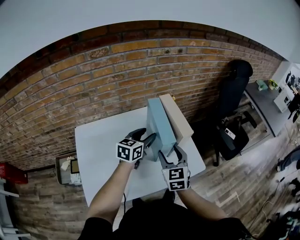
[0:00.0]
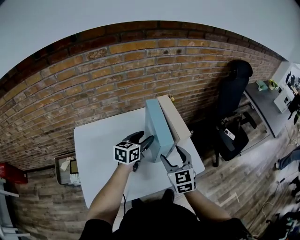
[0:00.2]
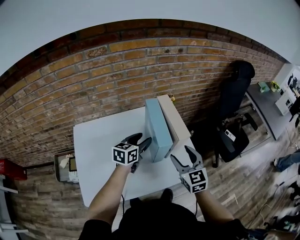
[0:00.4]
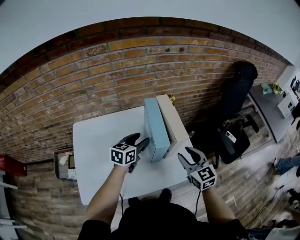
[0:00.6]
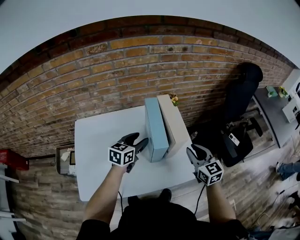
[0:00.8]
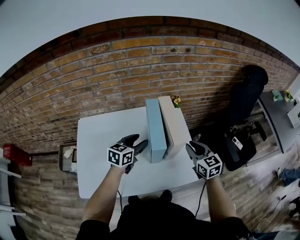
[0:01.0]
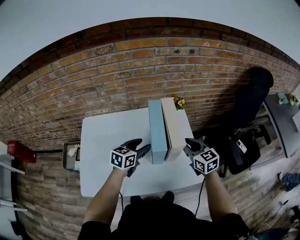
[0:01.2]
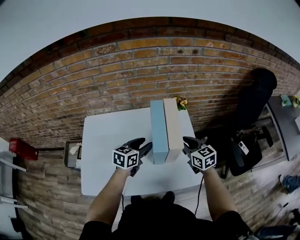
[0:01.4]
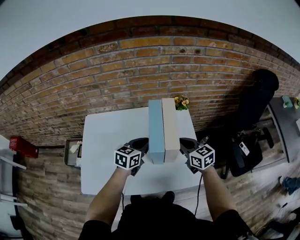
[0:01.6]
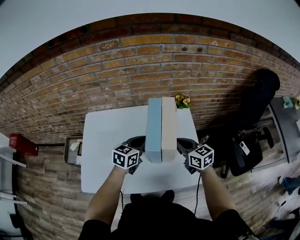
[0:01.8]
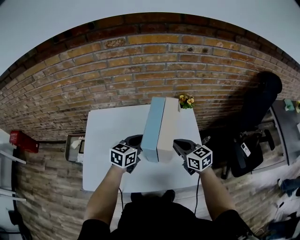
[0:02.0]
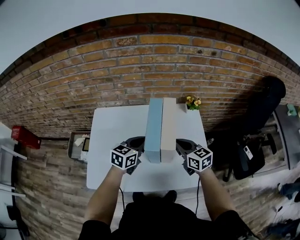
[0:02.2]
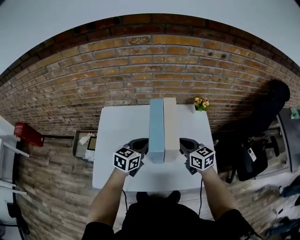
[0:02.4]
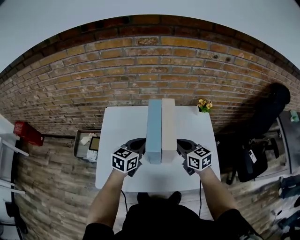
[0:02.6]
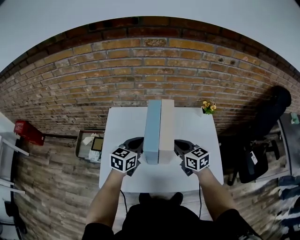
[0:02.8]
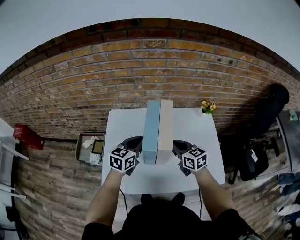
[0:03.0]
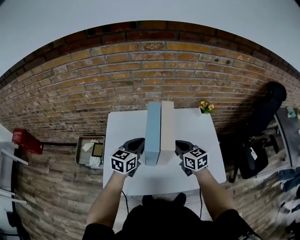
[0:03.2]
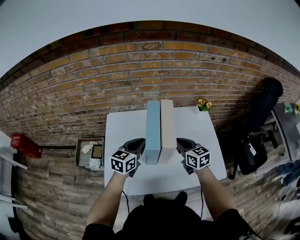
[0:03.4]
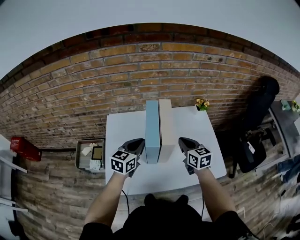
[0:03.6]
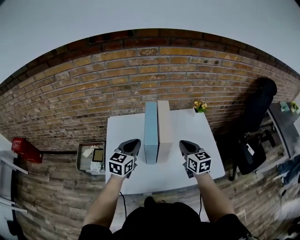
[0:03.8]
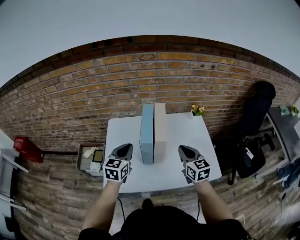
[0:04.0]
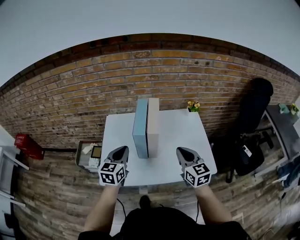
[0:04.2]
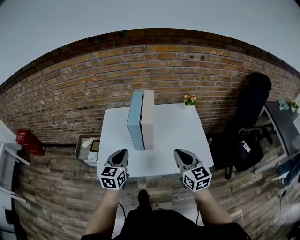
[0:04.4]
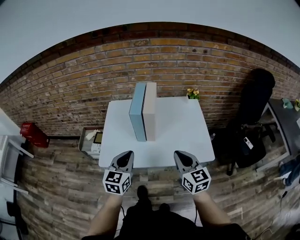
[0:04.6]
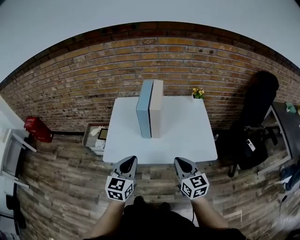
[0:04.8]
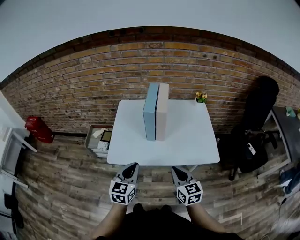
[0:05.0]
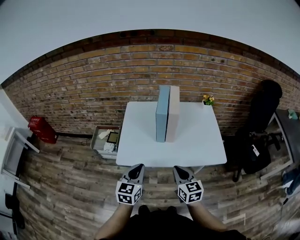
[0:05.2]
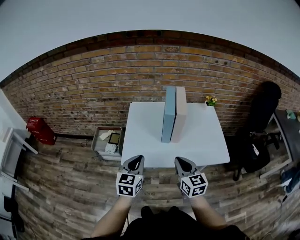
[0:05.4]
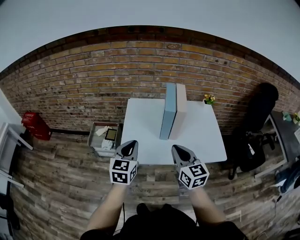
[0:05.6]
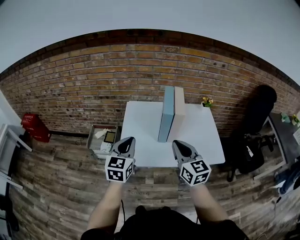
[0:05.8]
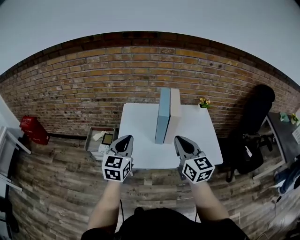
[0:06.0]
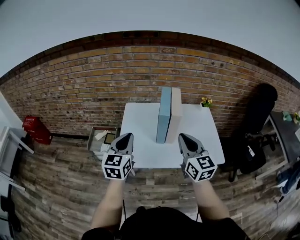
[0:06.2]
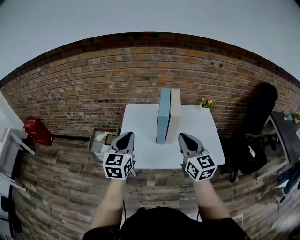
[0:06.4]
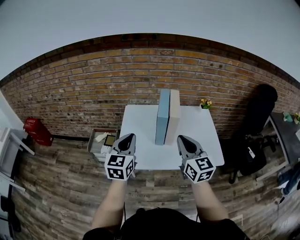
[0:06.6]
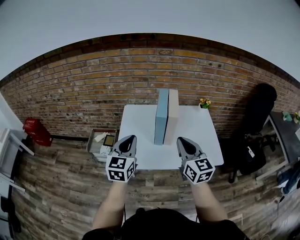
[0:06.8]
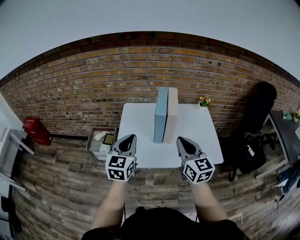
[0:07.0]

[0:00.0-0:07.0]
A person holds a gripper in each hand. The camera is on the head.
0:00.0 to 0:01.4: The right gripper goes approximately 15 cm forward and to the right, and rotates about 30 degrees.
0:01.4 to 0:02.8: The two grippers go some 20 cm to the left. The left gripper closes its fingers.
0:02.8 to 0:04.2: The right gripper is displaced backward, upward and to the right by about 15 cm, and turns by roughly 20 degrees, while the left gripper shifts approximately 10 cm backward and to the left.
0:04.2 to 0:05.6: The left gripper moves backward and to the left, about 15 cm, while the right gripper shifts some 20 cm to the left and backward.
0:05.6 to 0:07.0: The right gripper moves to the right and upward, approximately 10 cm. The left gripper ends up about 5 cm from where it was.

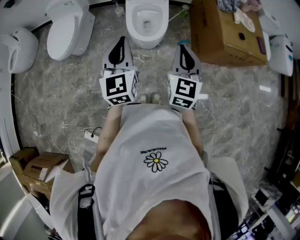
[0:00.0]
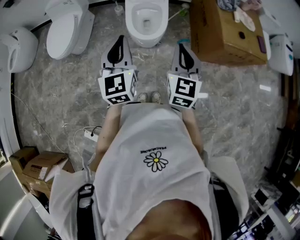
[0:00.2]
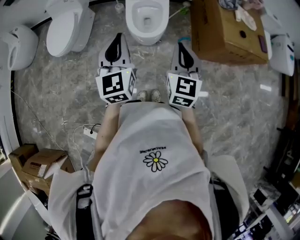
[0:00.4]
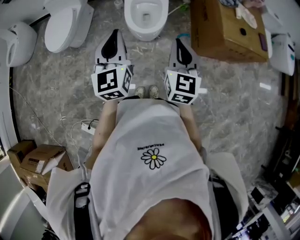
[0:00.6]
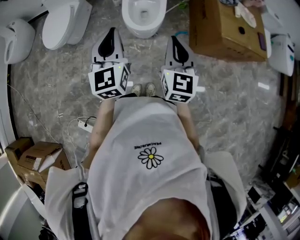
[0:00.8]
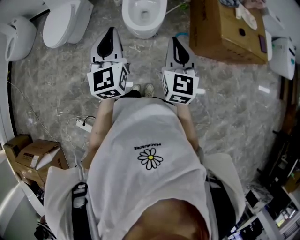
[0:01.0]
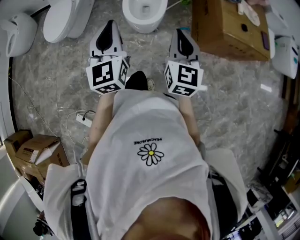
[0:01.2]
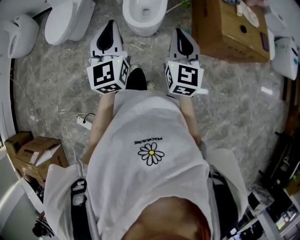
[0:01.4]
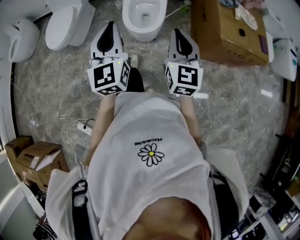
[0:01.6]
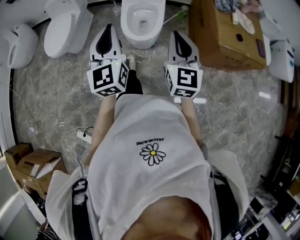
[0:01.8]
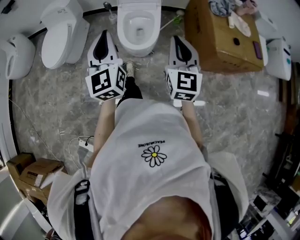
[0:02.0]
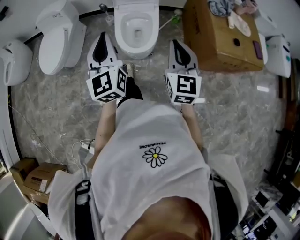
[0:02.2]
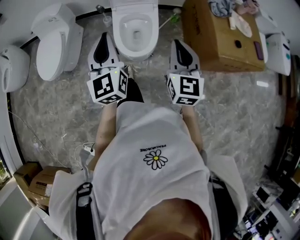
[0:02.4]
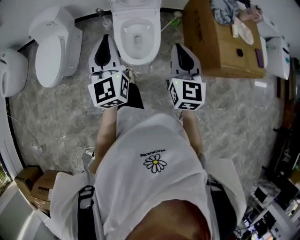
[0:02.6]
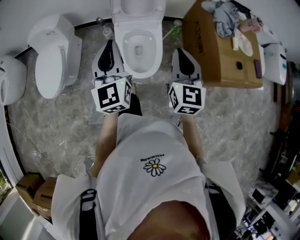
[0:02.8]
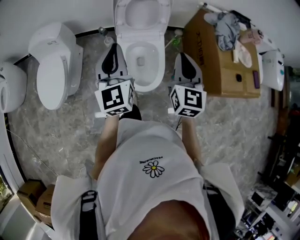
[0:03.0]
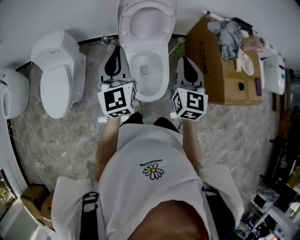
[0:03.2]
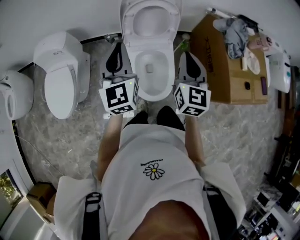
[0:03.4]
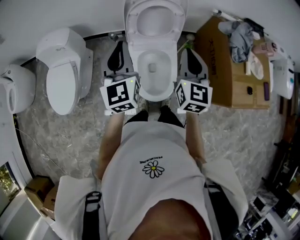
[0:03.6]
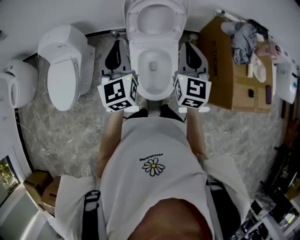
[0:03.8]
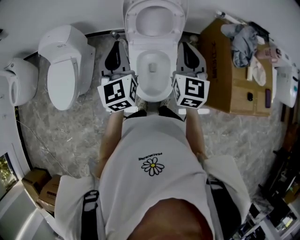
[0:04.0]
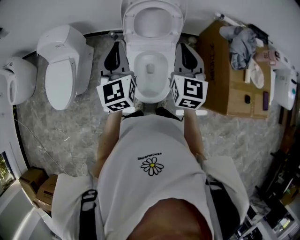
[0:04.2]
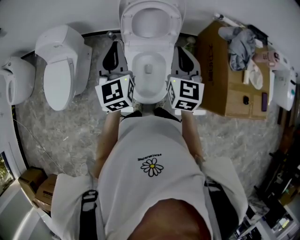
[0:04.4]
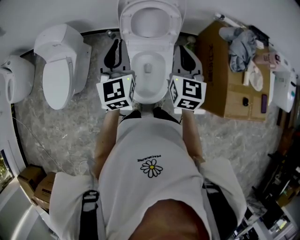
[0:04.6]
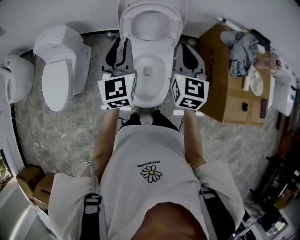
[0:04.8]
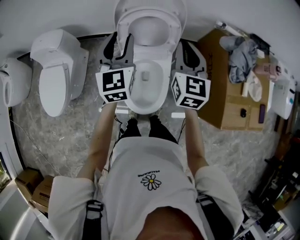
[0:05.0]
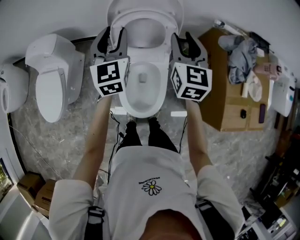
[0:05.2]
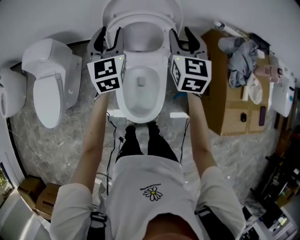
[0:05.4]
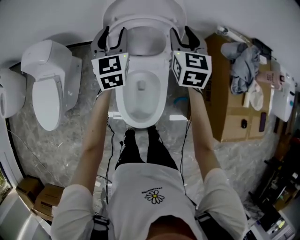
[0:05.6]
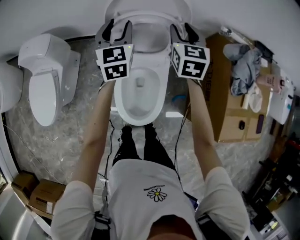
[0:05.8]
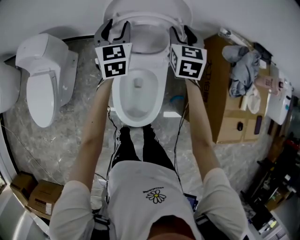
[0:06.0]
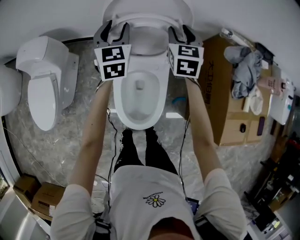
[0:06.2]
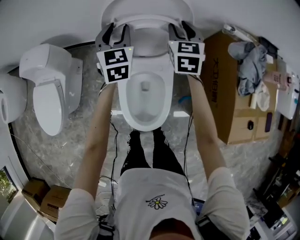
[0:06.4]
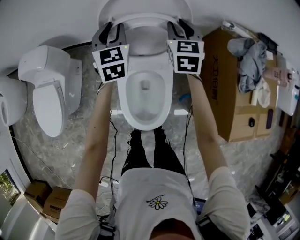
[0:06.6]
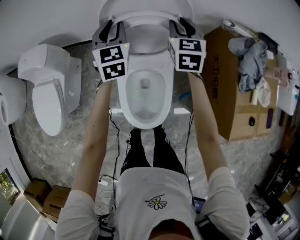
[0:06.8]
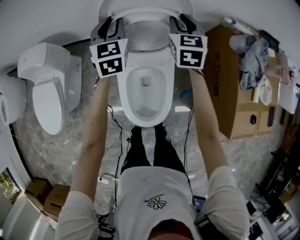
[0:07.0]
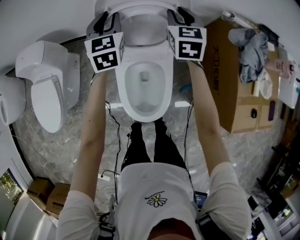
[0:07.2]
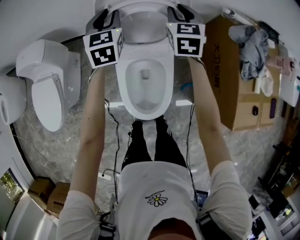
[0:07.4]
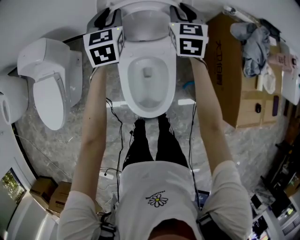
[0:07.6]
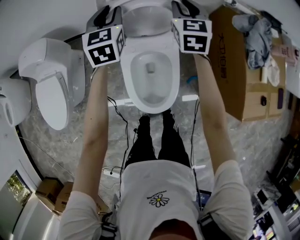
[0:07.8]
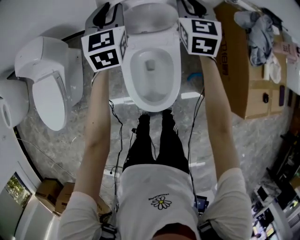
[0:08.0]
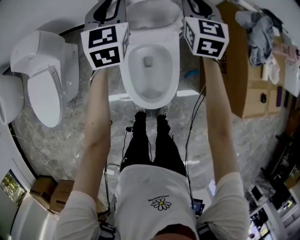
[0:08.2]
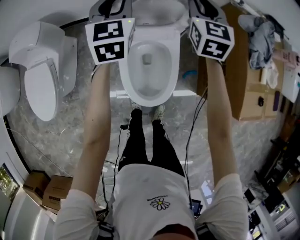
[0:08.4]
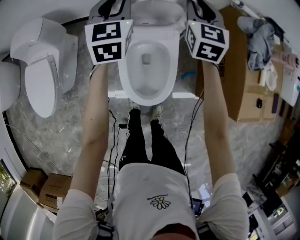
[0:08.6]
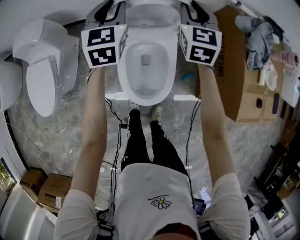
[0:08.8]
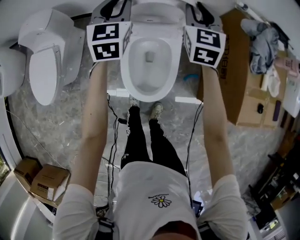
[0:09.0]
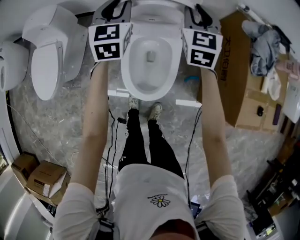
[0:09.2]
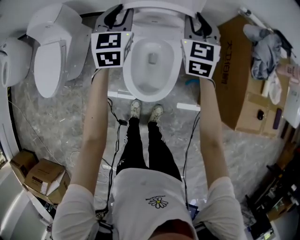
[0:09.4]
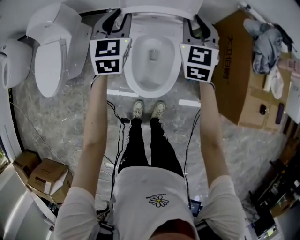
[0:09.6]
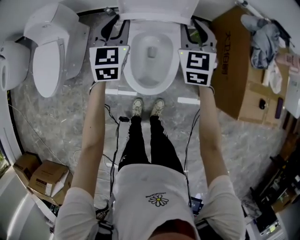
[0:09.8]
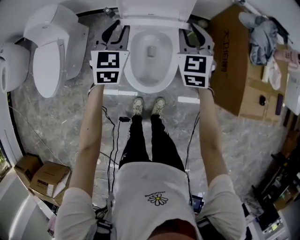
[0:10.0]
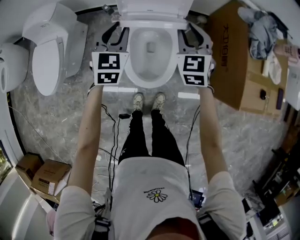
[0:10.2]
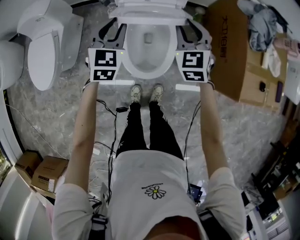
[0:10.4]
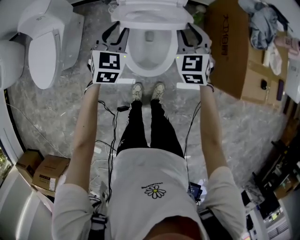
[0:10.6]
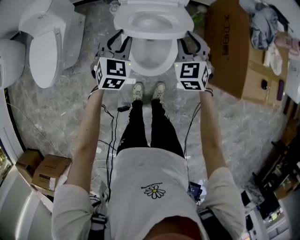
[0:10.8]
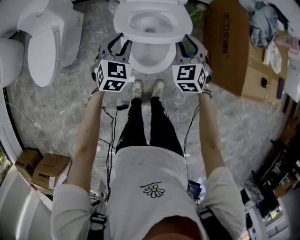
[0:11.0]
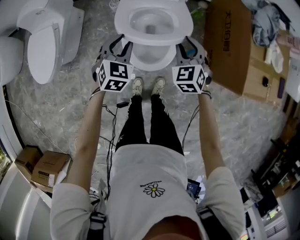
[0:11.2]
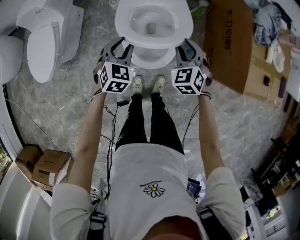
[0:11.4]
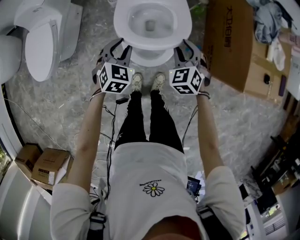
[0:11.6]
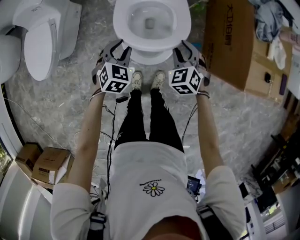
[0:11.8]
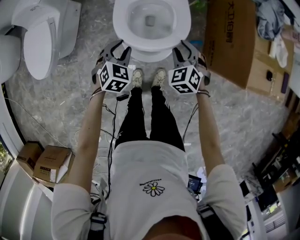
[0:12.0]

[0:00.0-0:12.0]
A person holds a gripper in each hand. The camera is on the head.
0:00.0 to 0:01.6: The grippers stay close to where they were, moving slightly.
0:01.6 to 0:03.0: The two grippers go about 35 cm forward.
0:03.0 to 0:04.4: The two grippers go some 15 cm forward.
0:04.4 to 0:06.0: The grippers both shift forward and downward by roughly 30 cm. The right gripper opens, while the left gripper opens its fingers.
0:06.0 to 0:07.6: The grippers make only small movements.
0:07.6 to 0:09.0: The grippers both shift backward by some 10 cm.
0:09.0 to 0:10.4: Both grippers move backward, about 15 cm.
0:10.4 to 0:12.0: The right gripper travels backward and downward by approximately 20 cm, and rotates roughly 30 degrees, while the left gripper is displaced downward and backward by about 20 cm, and turns by approximately 30 degrees.

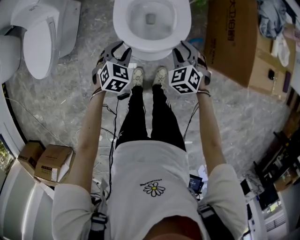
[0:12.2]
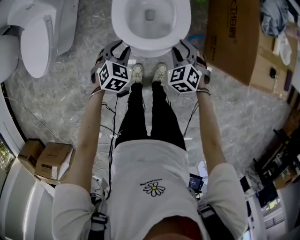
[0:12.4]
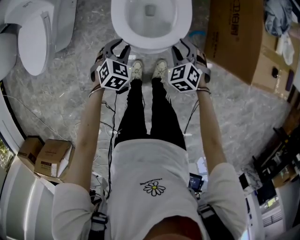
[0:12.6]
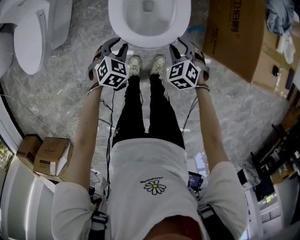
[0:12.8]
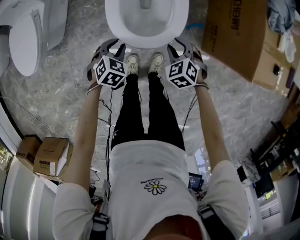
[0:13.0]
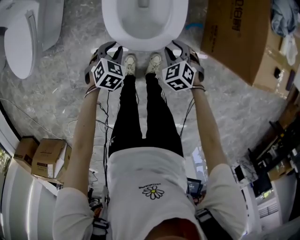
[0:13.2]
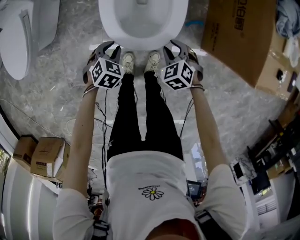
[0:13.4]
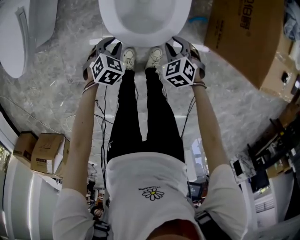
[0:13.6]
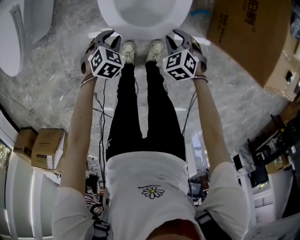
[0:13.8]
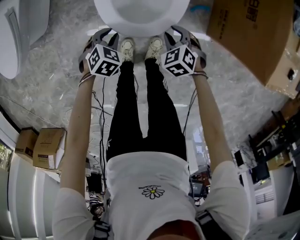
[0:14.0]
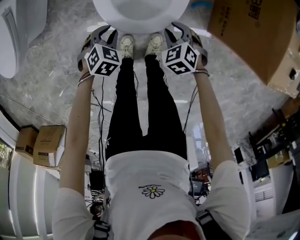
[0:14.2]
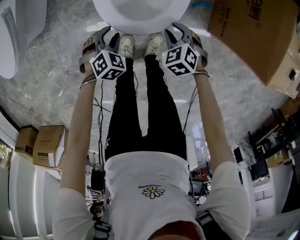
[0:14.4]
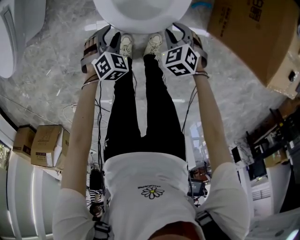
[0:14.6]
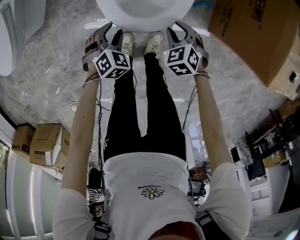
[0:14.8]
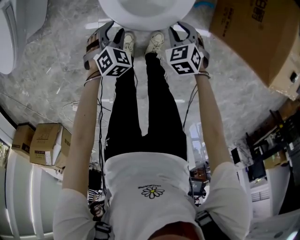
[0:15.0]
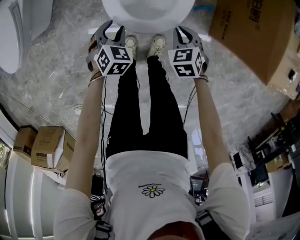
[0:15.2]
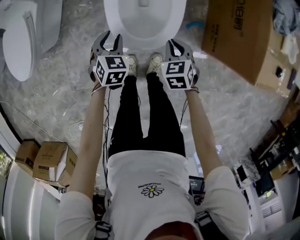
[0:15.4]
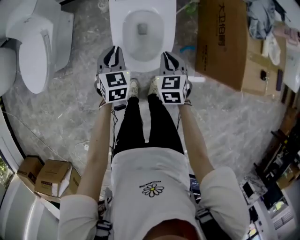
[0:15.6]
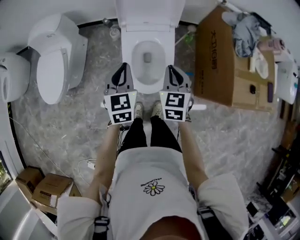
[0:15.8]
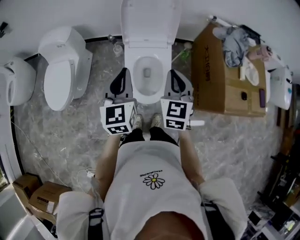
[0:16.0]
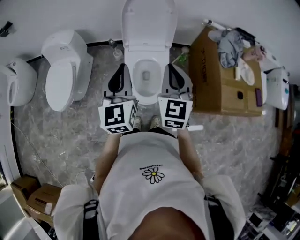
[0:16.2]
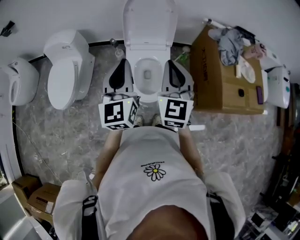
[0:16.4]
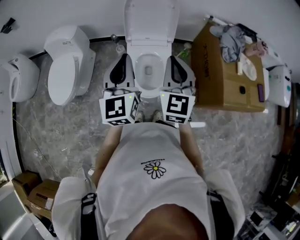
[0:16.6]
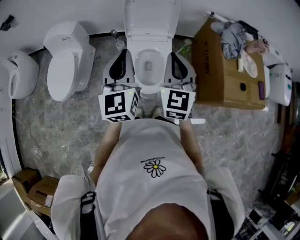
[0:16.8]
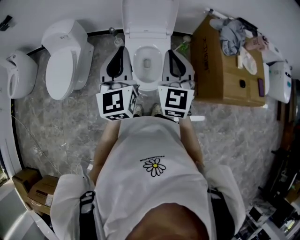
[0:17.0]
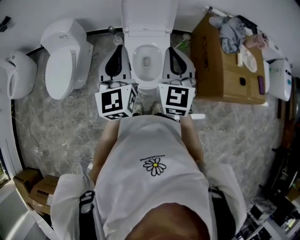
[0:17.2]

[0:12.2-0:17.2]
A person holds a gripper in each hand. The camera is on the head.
0:12.2 to 0:13.8: The two grippers go some 20 cm downward.
0:13.8 to 0:15.6: The right gripper moves upward, about 20 cm, rotates roughly 40 degrees, and closes its fingers, while the left gripper moves upward and forward, about 25 cm, and rotates approximately 40 degrees.
0:15.6 to 0:17.2: Both grippers travel together upward, about 40 cm. The right gripper tilts its fingers approximately 40 degrees upward. The left gripper angles its fingers upward, by roughly 40 degrees.
